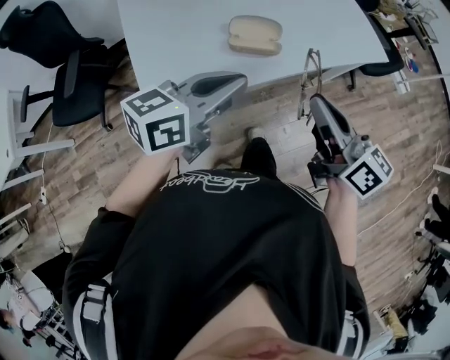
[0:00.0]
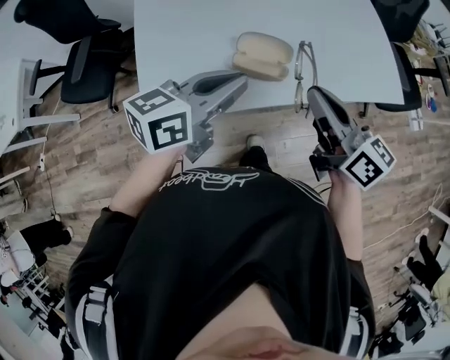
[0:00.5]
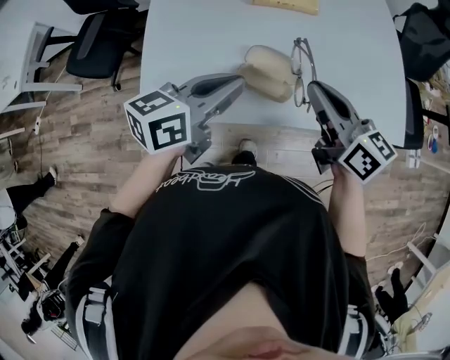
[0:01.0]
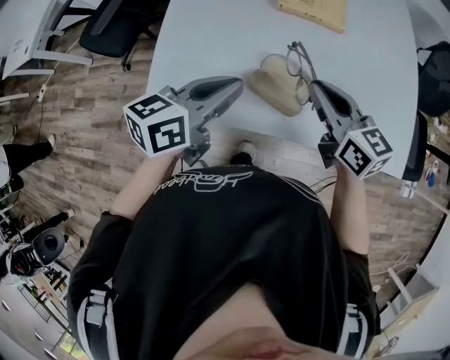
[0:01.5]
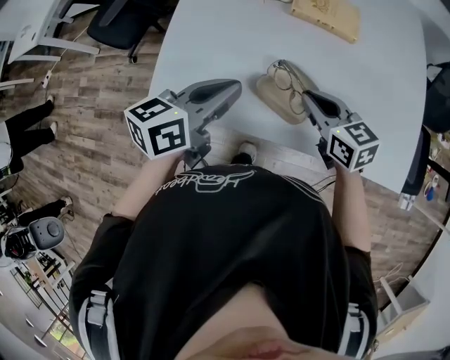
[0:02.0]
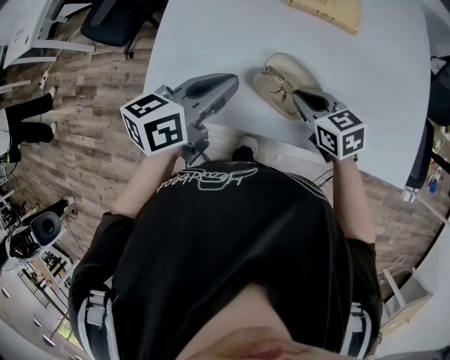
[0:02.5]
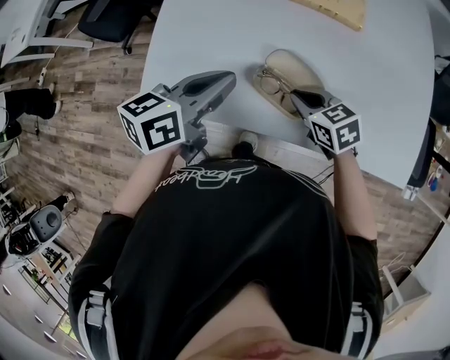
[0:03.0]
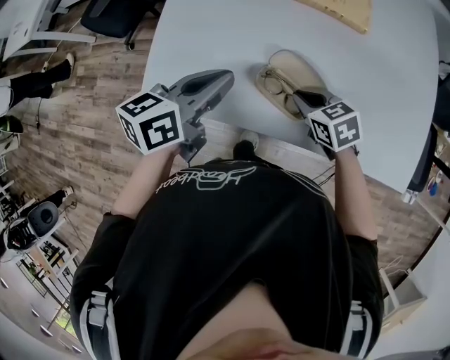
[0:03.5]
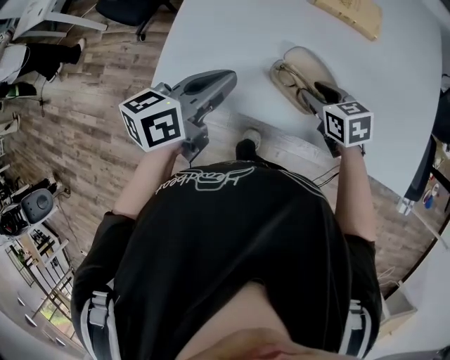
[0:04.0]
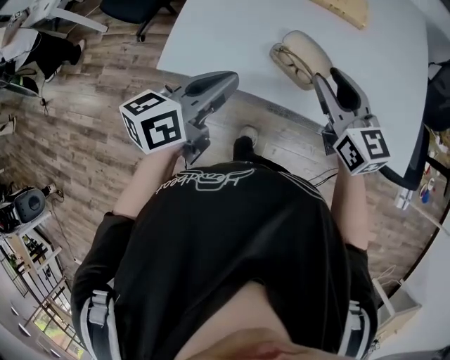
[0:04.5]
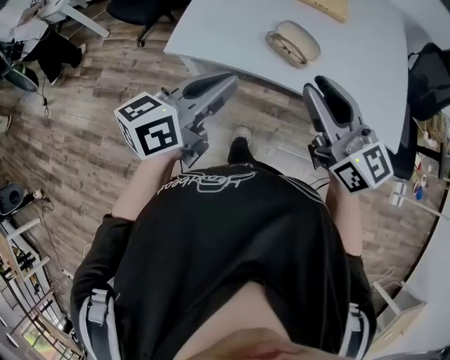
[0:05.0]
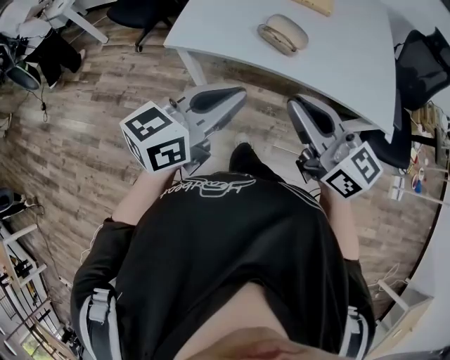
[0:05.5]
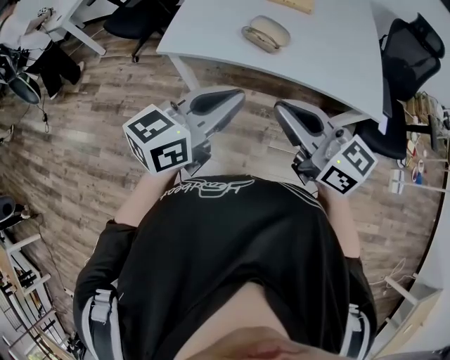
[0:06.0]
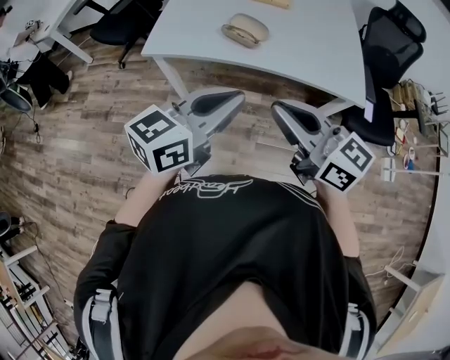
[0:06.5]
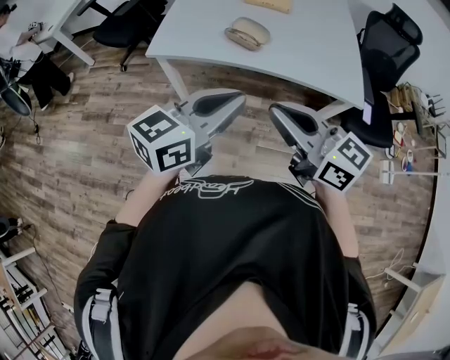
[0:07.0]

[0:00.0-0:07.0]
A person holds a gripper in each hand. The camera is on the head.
0:00.0 to 0:02.0: The left gripper shifts by some 15 cm, and changes its angle by roughly 40 degrees. Meanwhile the right gripper ends up some 30 cm from where it was, and rotates approximately 50 degrees.
0:02.0 to 0:03.5: The right gripper moves downward, some 10 cm, and rotates roughly 20 degrees.
0:03.5 to 0:05.0: The left gripper moves backward and upward, some 25 cm. The right gripper travels upward and backward by roughly 35 cm, points its fingers some 50 degrees further upward, and opens.
0:05.0 to 0:07.0: The left gripper moves backward and to the right, some 25 cm; the right gripper travels backward by some 20 cm, and closes up.

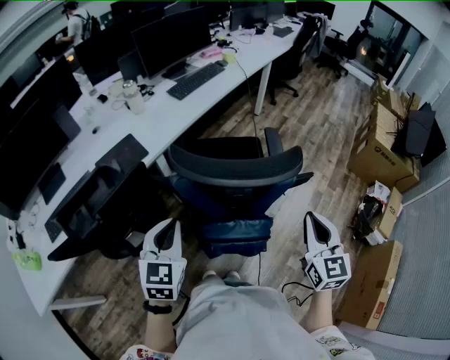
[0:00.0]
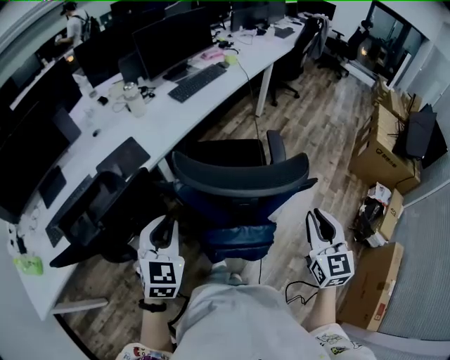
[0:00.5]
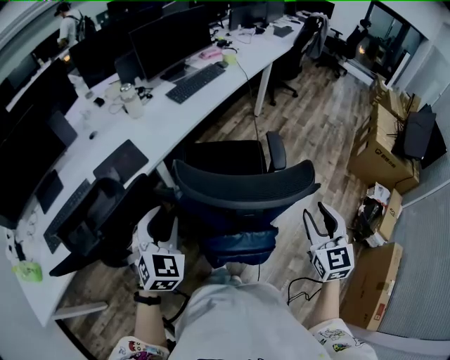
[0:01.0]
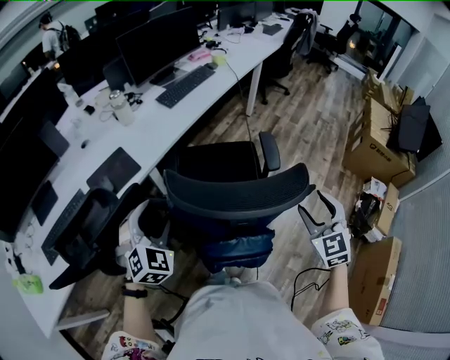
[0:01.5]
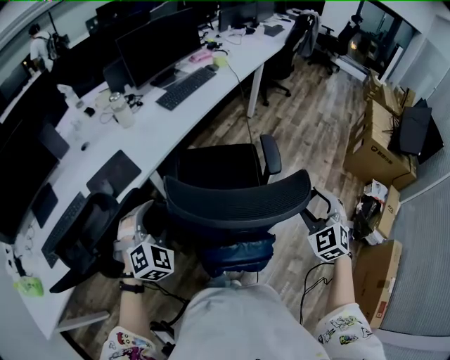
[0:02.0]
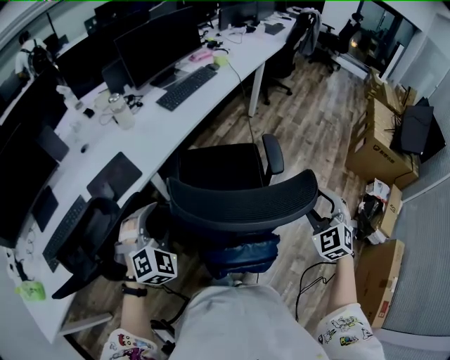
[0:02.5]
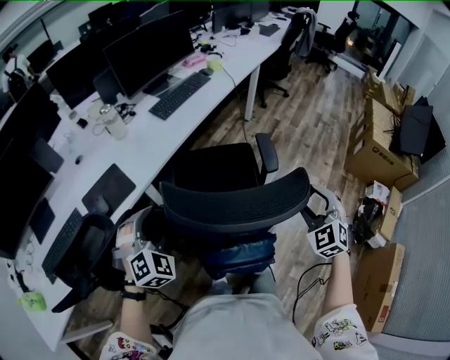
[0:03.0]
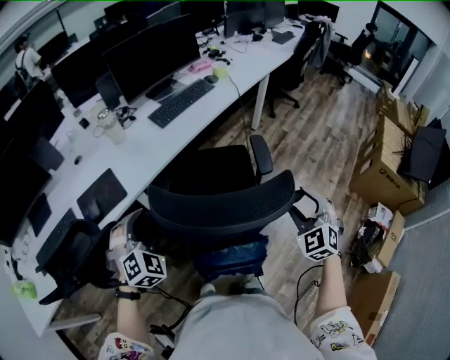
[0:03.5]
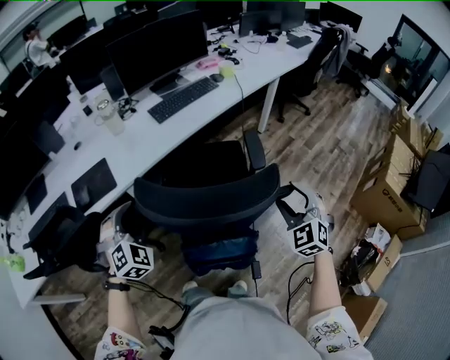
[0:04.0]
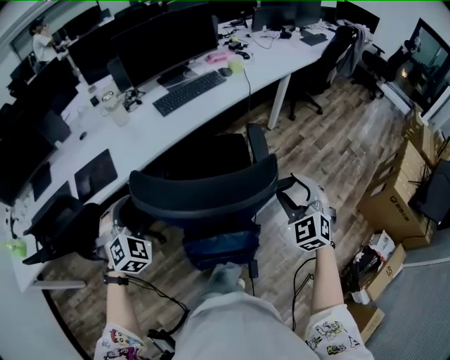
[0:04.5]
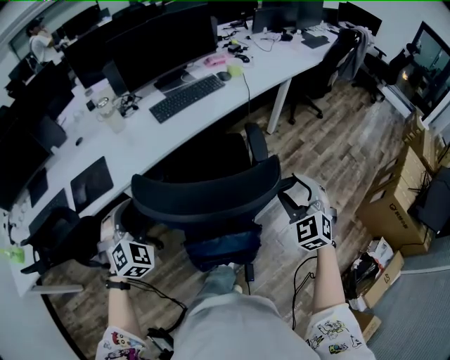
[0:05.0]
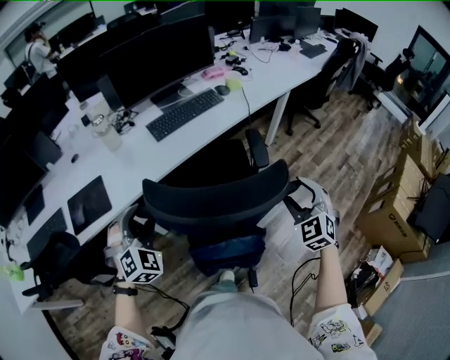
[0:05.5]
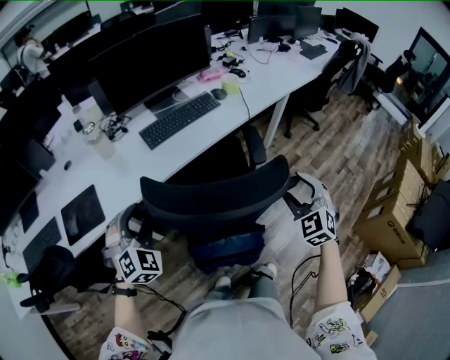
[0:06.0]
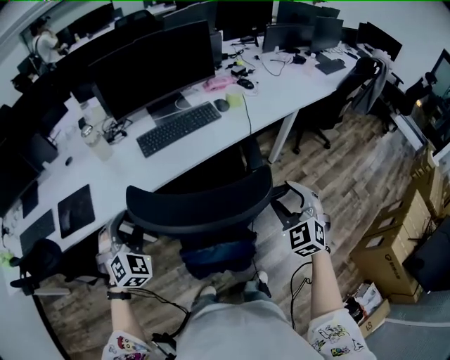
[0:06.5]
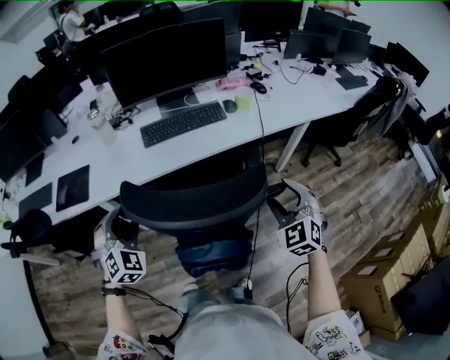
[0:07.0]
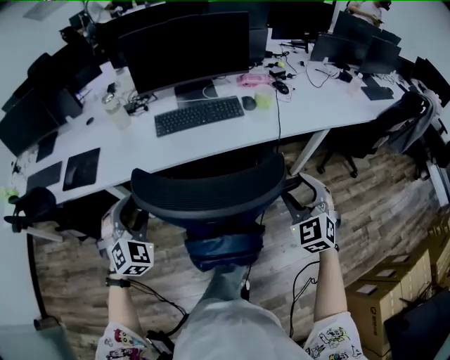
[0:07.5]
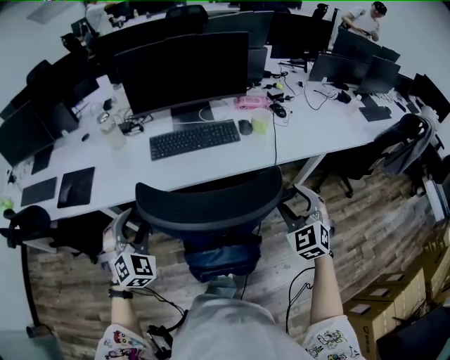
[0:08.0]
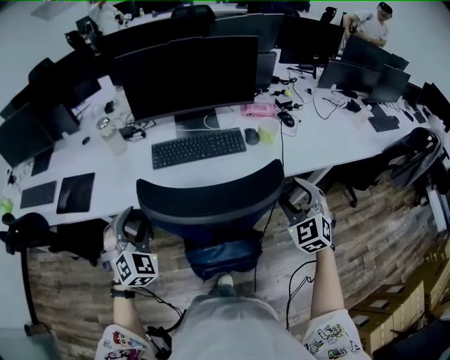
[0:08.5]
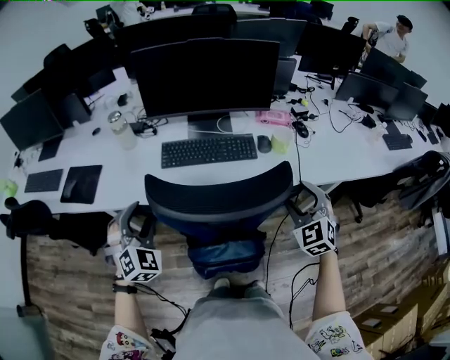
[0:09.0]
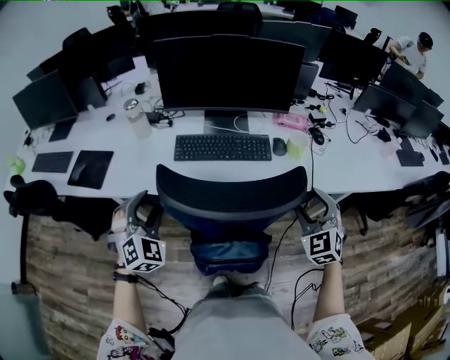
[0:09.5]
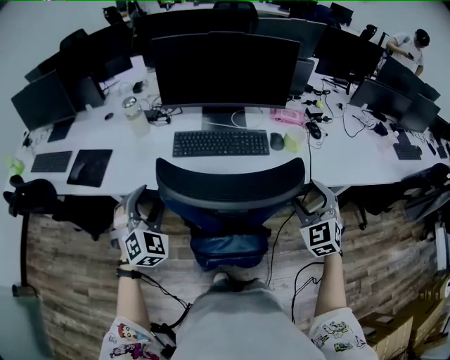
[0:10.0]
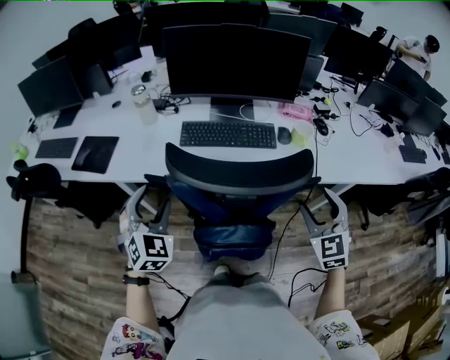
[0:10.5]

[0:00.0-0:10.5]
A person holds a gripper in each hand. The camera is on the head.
0:00.0 to 0:02.0: The right gripper heads forward and downward, covering roughly 15 cm, rotates around the line of its fingers by some 40 degrees, counterclockwise from behind, and opens, while the left gripper shifts approximately 15 cm forward, twists some 50 degrees clockwise, seen from behind, and opens.
0:02.0 to 0:04.0: The right gripper moves forward and to the right, some 20 cm. Meanwhile the left gripper travels forward and to the right by approximately 15 cm.
0:04.0 to 0:06.5: Both grippers travel together forward and to the right, some 25 cm.
0:06.5 to 0:08.5: The right gripper is displaced forward and to the right by about 25 cm; the left gripper goes approximately 10 cm to the right and forward.
0:08.5 to 0:10.5: The grippers make only small movements.

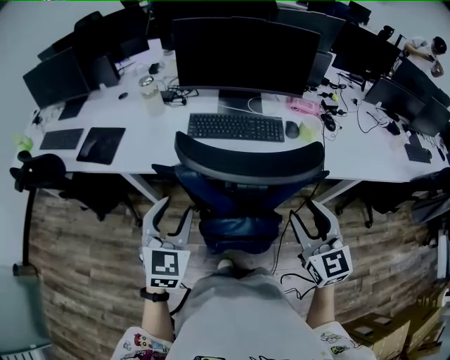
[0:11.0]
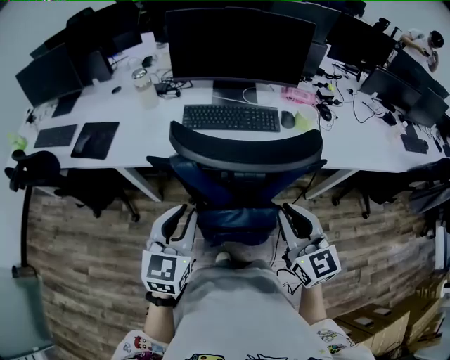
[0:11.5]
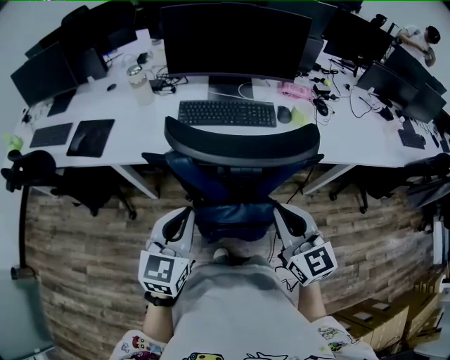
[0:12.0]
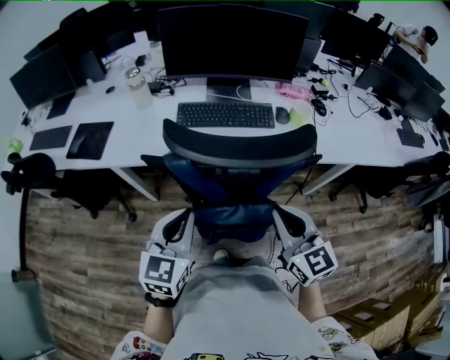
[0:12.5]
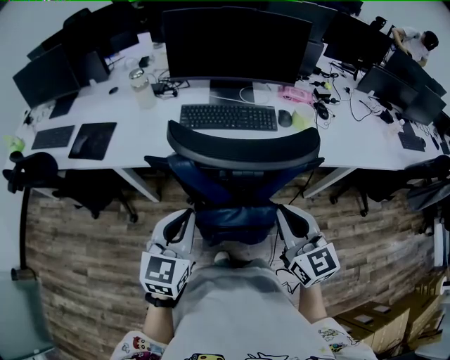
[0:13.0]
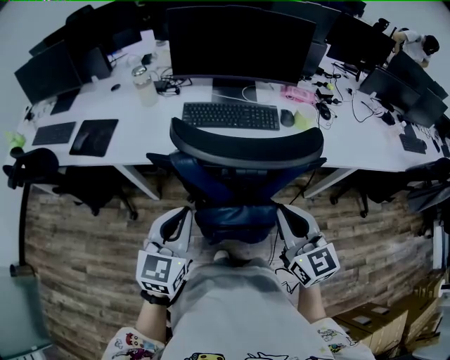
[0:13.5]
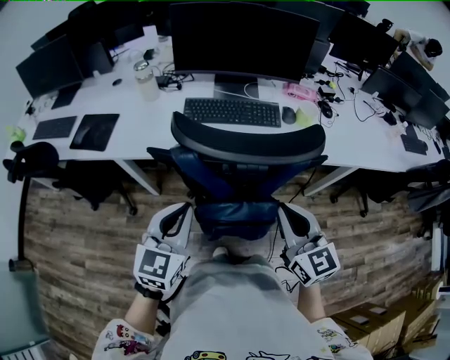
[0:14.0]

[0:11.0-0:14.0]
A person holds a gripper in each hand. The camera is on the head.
0:11.0 to 0:12.5: The right gripper moves some 5 cm, and closes, while the left gripper moves some 5 cm, rotates about 20 degrees, and closes.
0:12.5 to 0:14.0: There are only small adjustments of the grippers.

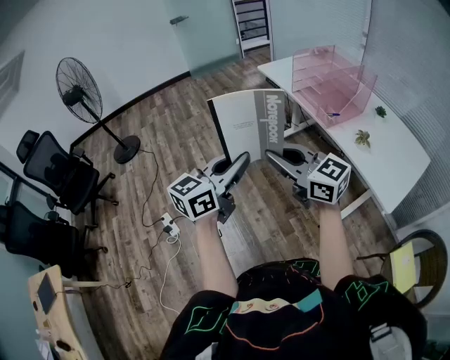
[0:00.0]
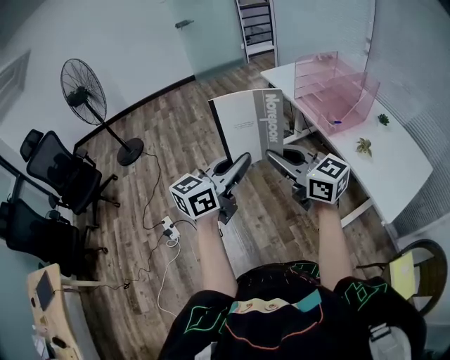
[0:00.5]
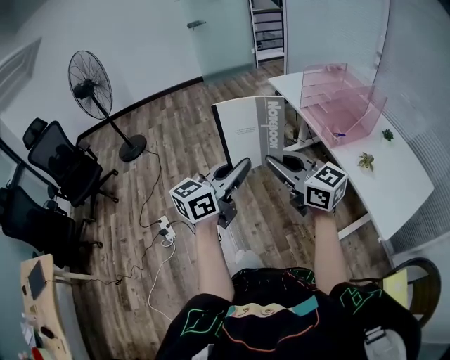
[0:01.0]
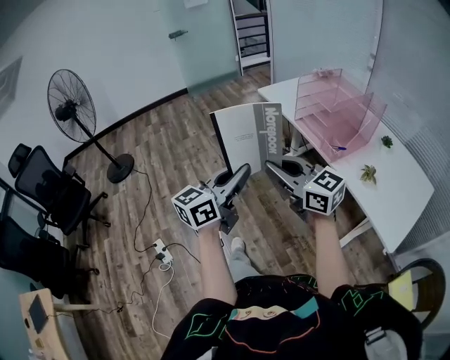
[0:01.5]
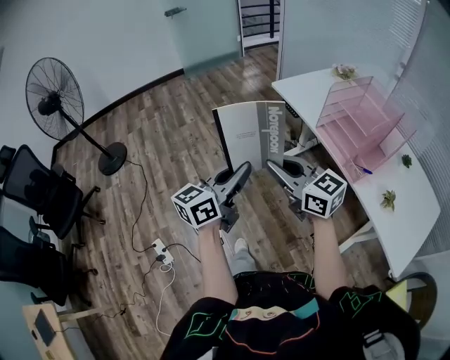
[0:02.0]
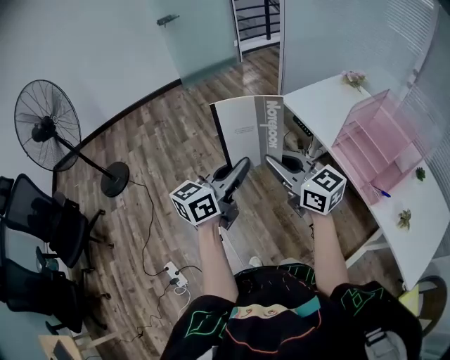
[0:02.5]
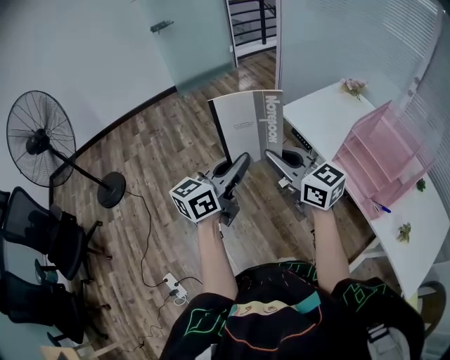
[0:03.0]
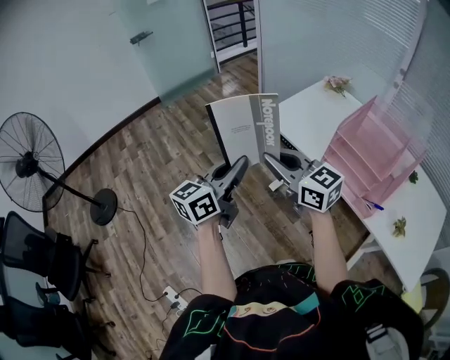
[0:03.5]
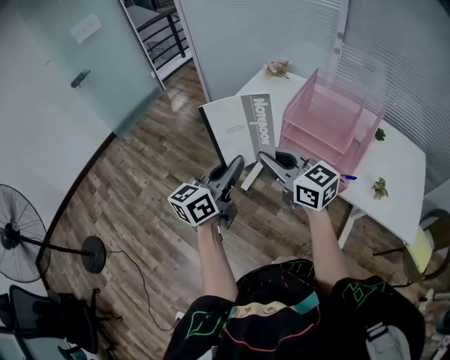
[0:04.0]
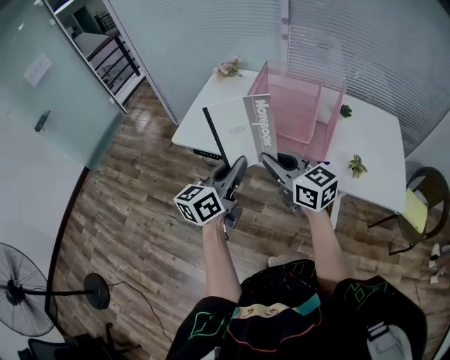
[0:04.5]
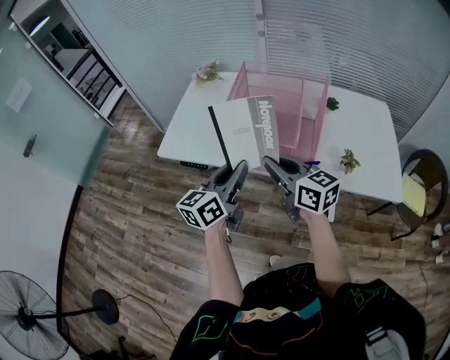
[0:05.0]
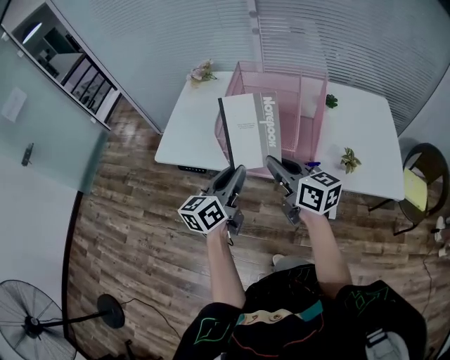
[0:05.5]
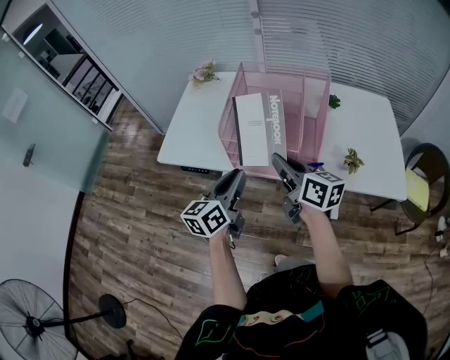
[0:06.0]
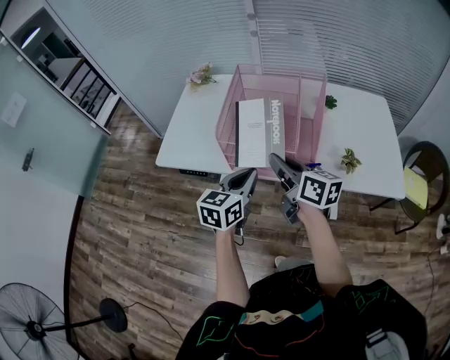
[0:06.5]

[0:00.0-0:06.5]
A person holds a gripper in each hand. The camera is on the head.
0:00.0 to 0:02.0: Both grippers move forward, roughly 30 cm.
0:02.0 to 0:04.5: The left gripper ends up about 35 cm from where it was, and rotates roughly 40 degrees. Meanwhile the right gripper ends up about 30 cm from where it was, and changes its angle by about 50 degrees.
0:04.5 to 0:06.5: The right gripper travels to the right and forward by approximately 10 cm, and swivels about 30 degrees; the left gripper heads to the right and downward, covering about 10 cm, and turns by some 20 degrees.
